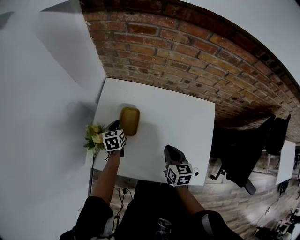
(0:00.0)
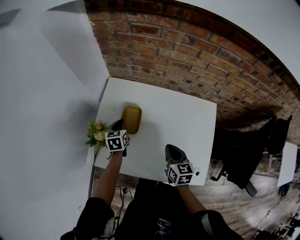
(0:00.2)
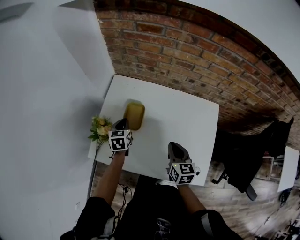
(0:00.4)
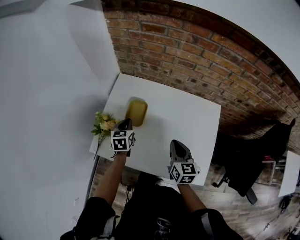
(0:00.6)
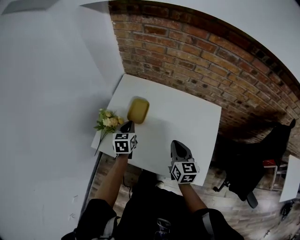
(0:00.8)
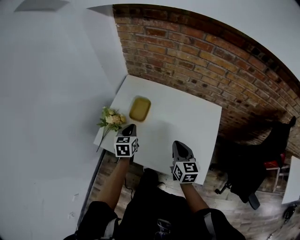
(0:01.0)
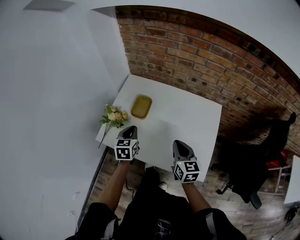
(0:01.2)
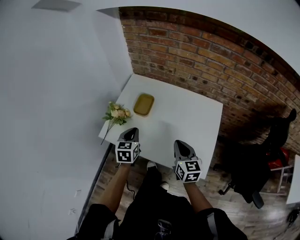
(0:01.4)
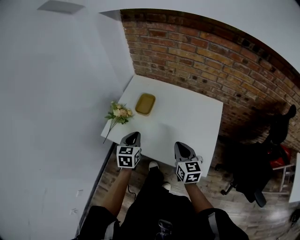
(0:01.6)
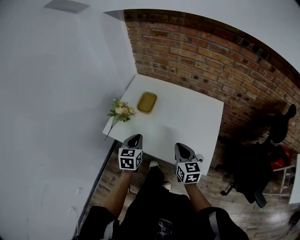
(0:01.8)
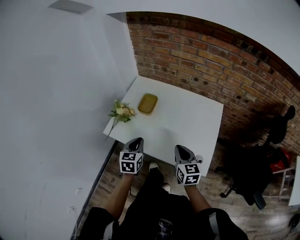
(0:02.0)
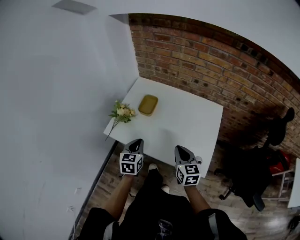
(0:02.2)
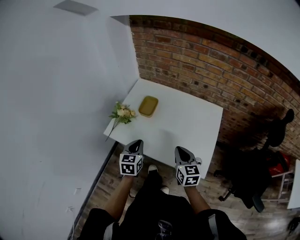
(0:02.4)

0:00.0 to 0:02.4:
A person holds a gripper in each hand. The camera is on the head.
0:00.0 to 0:01.2: The right gripper moves backward and upward, some 15 cm, while the left gripper travels backward and upward by some 25 cm.
0:01.2 to 0:02.4: The right gripper shifts approximately 10 cm backward. Meanwhile the left gripper is displaced backward by roughly 15 cm.

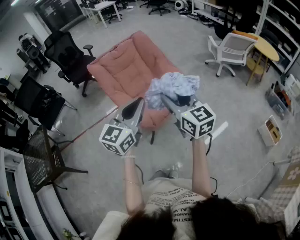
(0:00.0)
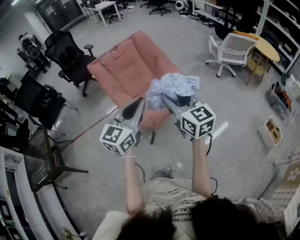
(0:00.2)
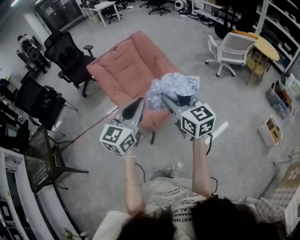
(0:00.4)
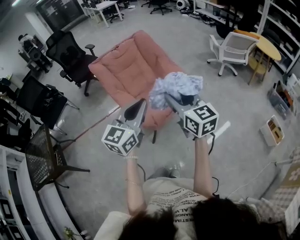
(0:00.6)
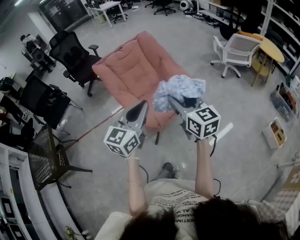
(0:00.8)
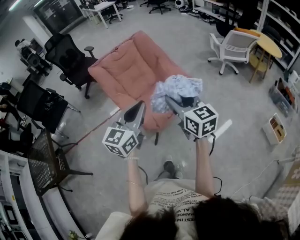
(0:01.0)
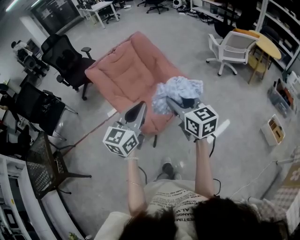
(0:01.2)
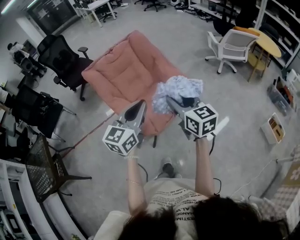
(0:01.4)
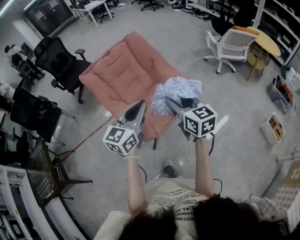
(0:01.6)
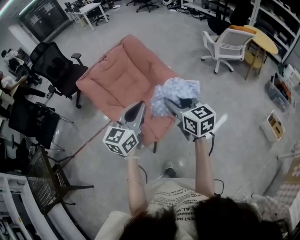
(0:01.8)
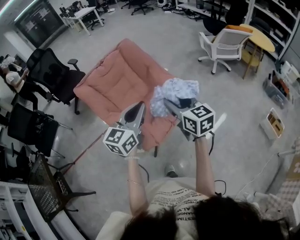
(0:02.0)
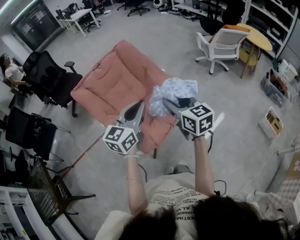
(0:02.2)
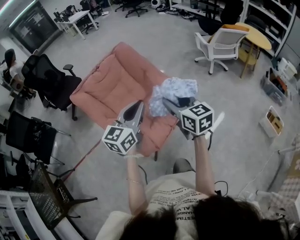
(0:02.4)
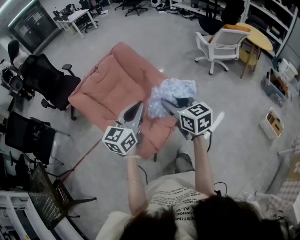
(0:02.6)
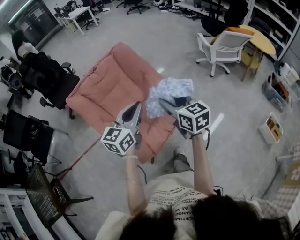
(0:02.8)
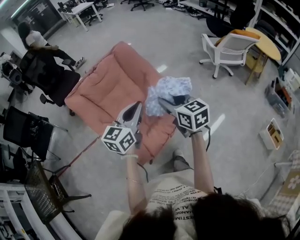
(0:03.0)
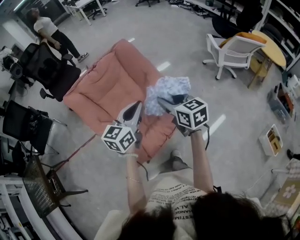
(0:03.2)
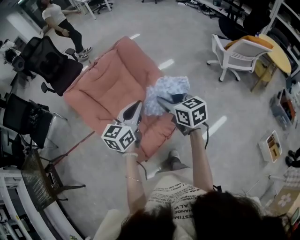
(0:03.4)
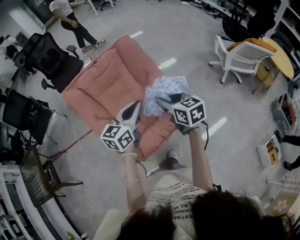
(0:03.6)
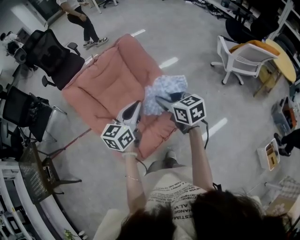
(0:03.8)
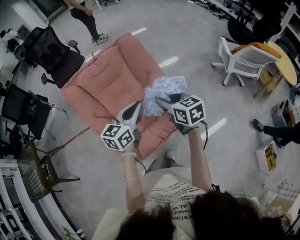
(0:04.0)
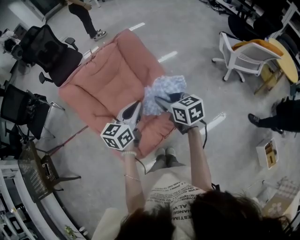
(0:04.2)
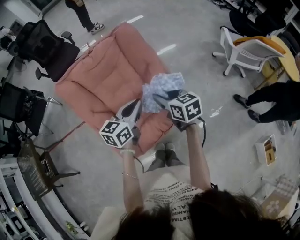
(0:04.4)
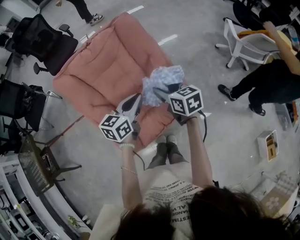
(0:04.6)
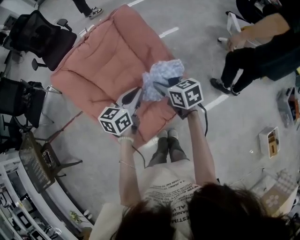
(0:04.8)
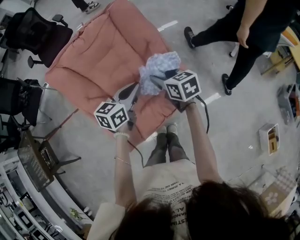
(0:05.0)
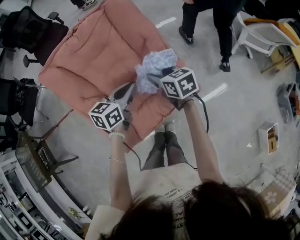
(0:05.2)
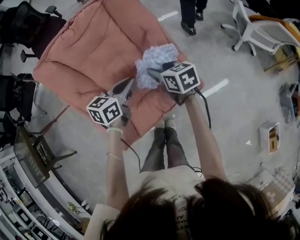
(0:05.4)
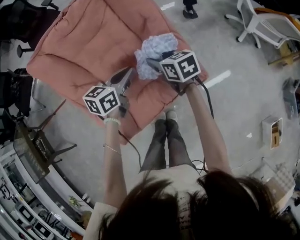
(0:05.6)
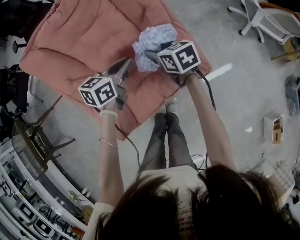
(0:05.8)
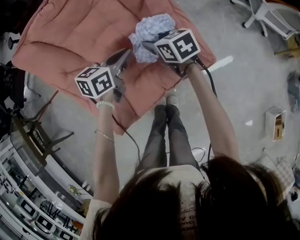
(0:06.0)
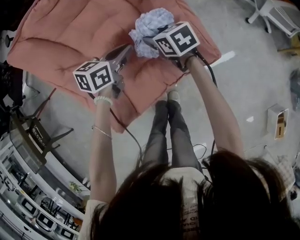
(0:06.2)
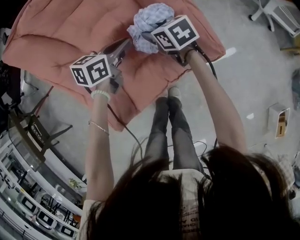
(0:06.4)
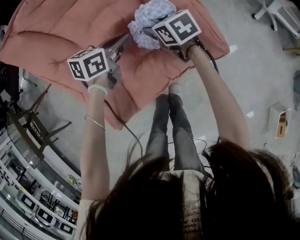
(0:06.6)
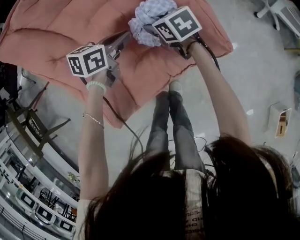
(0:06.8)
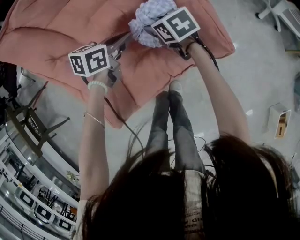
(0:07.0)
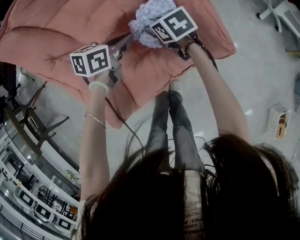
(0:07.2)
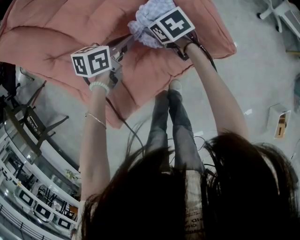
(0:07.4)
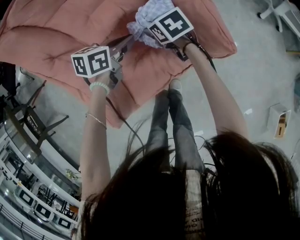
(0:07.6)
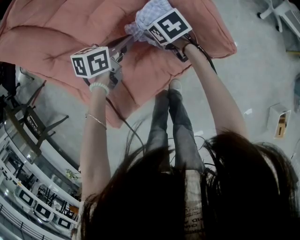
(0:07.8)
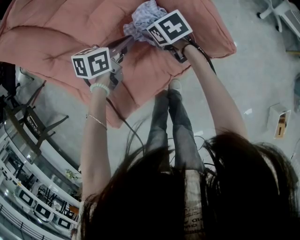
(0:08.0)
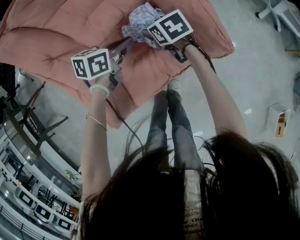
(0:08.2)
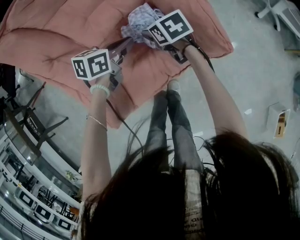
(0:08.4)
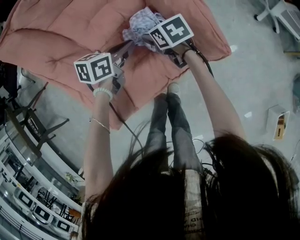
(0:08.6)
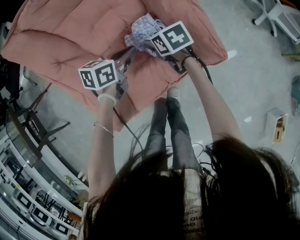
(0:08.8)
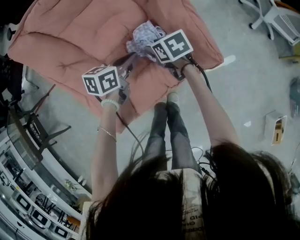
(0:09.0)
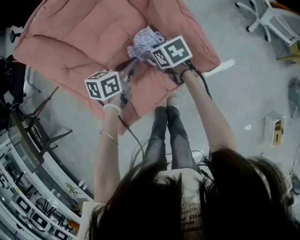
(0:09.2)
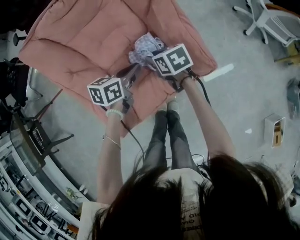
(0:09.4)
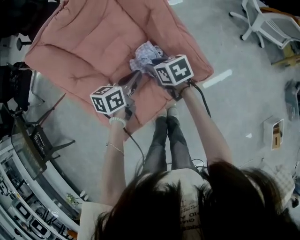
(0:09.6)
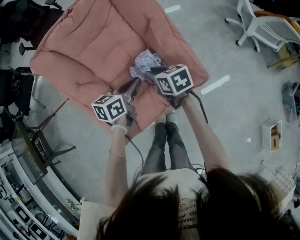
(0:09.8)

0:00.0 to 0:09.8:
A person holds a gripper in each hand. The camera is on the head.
0:00.0 to 0:01.4: The right gripper shifts roughly 10 cm forward and downward. Meanwhile the left gripper travels forward by some 10 cm.
0:01.4 to 0:02.8: The grippers both shift forward by about 20 cm.
0:02.8 to 0:04.2: Both grippers travel together forward and downward, roughly 15 cm. The right gripper turns by some 20 degrees.
0:04.2 to 0:05.6: Both grippers travel together downward and forward, about 25 cm.
0:05.6 to 0:07.0: The two grippers go approximately 15 cm downward.
0:07.0 to 0:08.4: There are only small adjustments of the grippers.
0:08.4 to 0:09.8: The grippers both shift upward by roughly 15 cm. The right gripper closes.

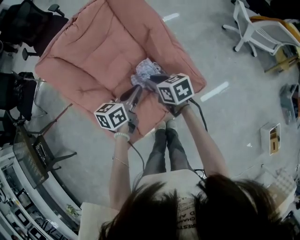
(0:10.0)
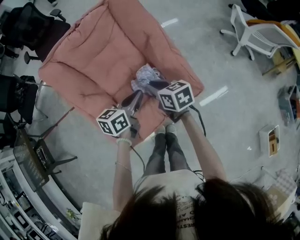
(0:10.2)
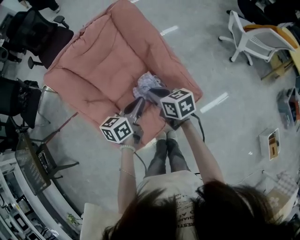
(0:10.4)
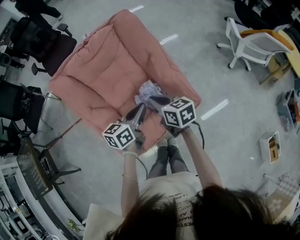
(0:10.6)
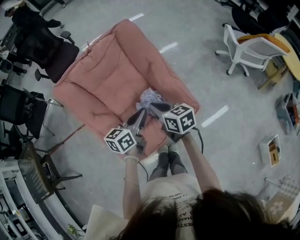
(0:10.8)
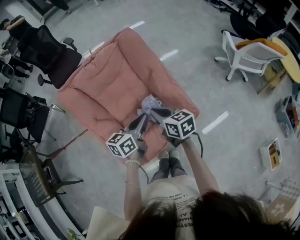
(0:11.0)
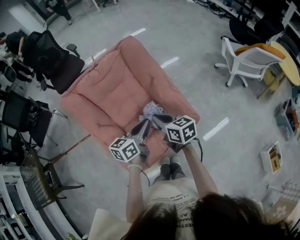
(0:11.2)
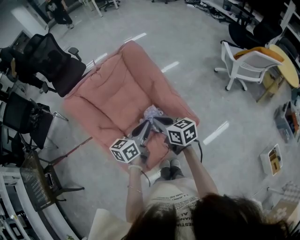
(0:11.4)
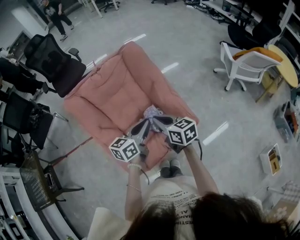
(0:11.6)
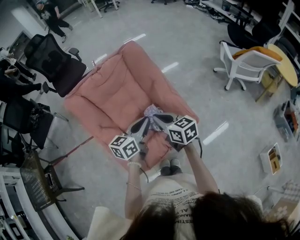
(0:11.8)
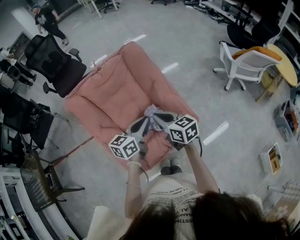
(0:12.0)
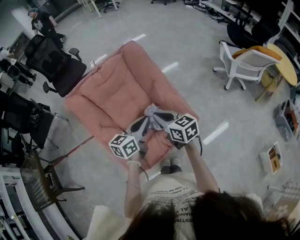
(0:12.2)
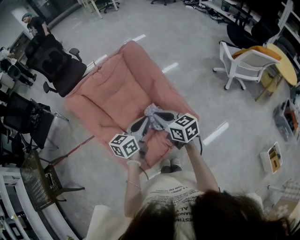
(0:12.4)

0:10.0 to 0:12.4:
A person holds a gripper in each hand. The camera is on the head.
0:10.0 to 0:11.2: The two grippers go about 15 cm upward.
0:11.2 to 0:12.4: The grippers move only a little.

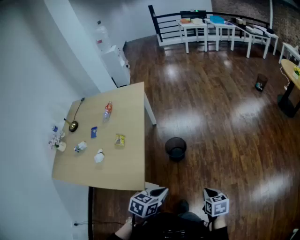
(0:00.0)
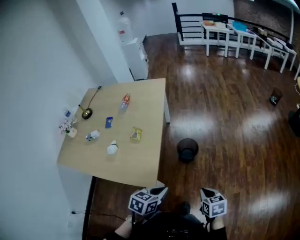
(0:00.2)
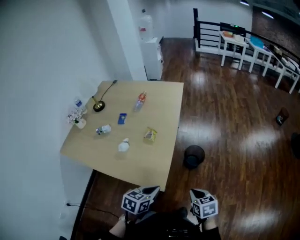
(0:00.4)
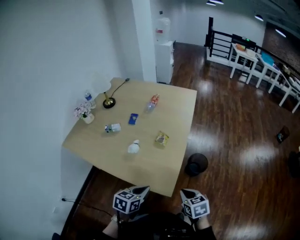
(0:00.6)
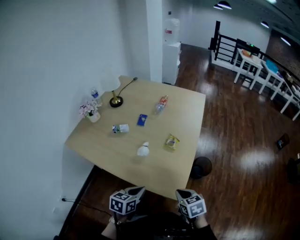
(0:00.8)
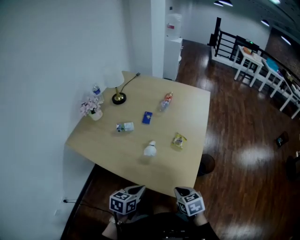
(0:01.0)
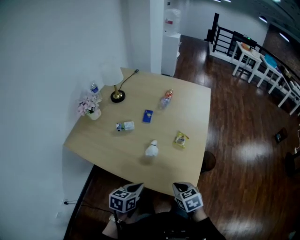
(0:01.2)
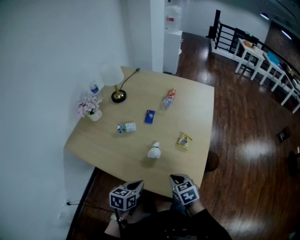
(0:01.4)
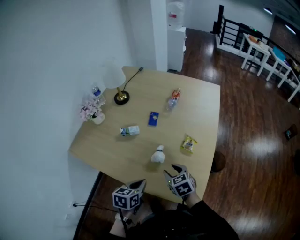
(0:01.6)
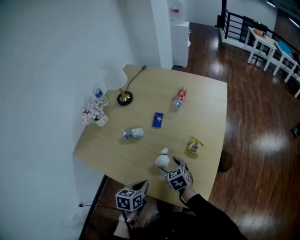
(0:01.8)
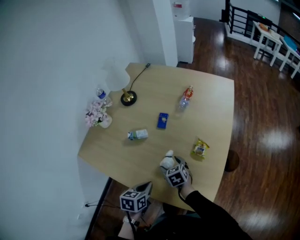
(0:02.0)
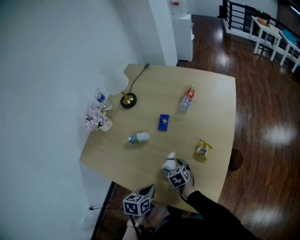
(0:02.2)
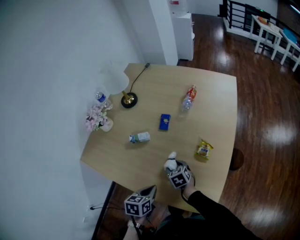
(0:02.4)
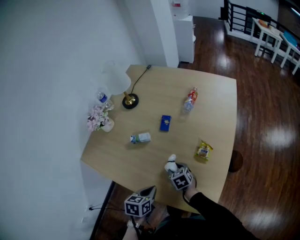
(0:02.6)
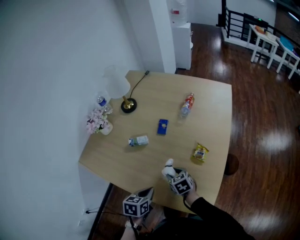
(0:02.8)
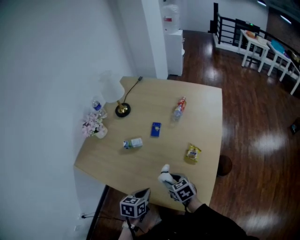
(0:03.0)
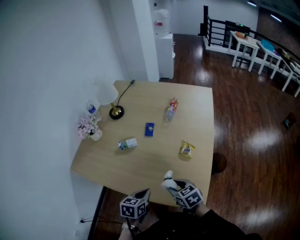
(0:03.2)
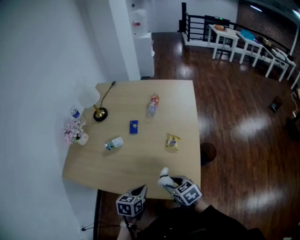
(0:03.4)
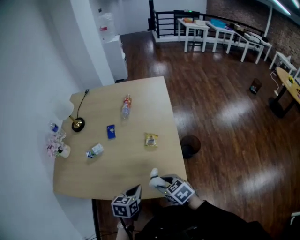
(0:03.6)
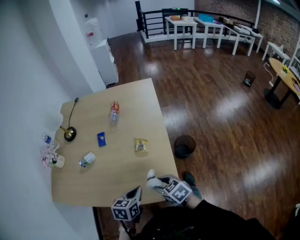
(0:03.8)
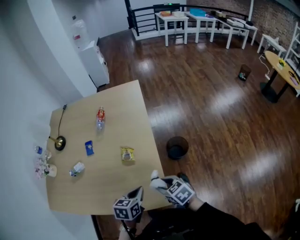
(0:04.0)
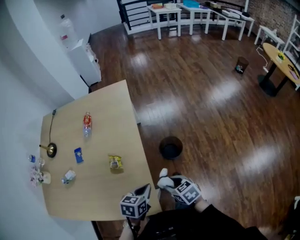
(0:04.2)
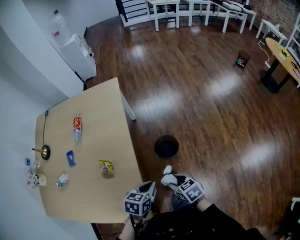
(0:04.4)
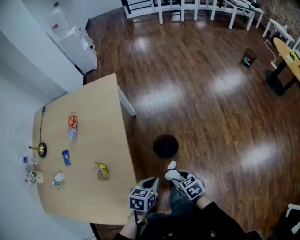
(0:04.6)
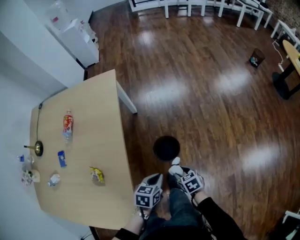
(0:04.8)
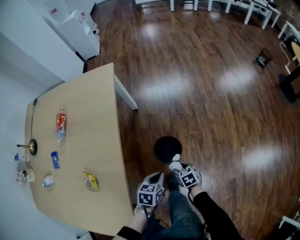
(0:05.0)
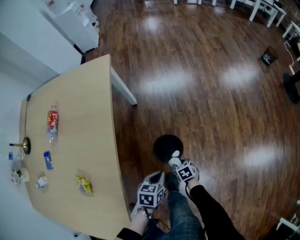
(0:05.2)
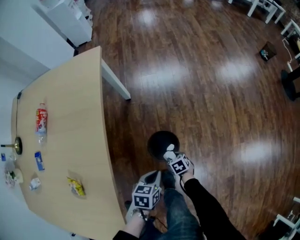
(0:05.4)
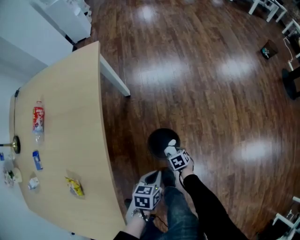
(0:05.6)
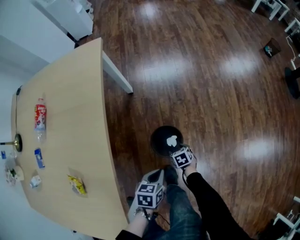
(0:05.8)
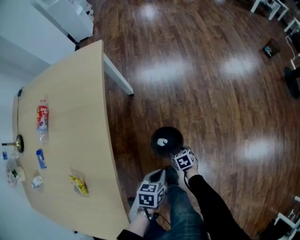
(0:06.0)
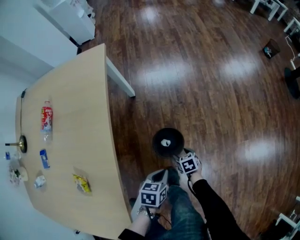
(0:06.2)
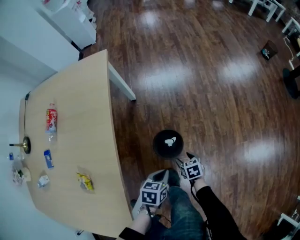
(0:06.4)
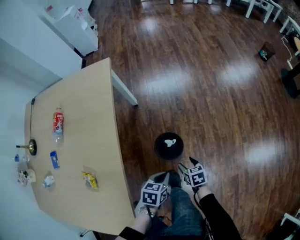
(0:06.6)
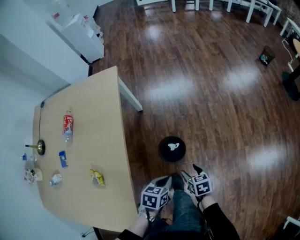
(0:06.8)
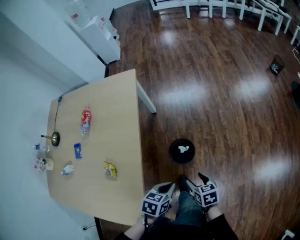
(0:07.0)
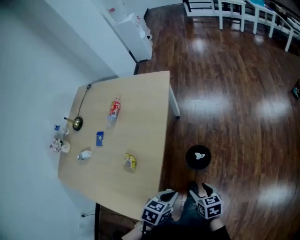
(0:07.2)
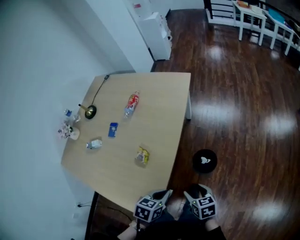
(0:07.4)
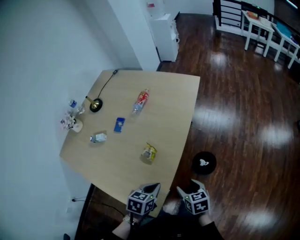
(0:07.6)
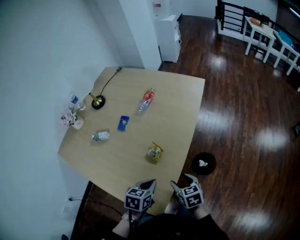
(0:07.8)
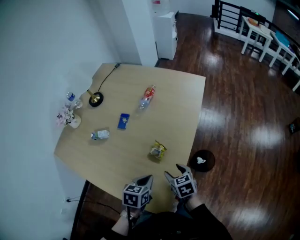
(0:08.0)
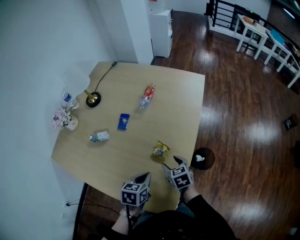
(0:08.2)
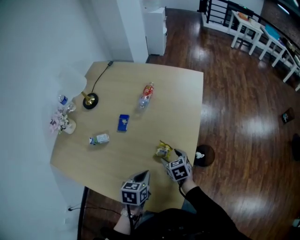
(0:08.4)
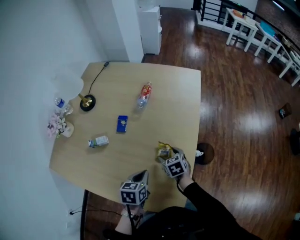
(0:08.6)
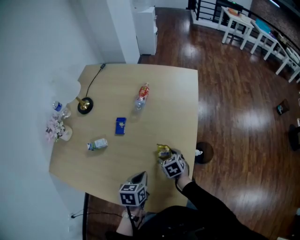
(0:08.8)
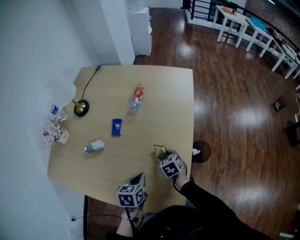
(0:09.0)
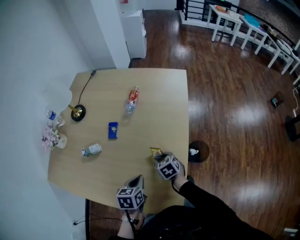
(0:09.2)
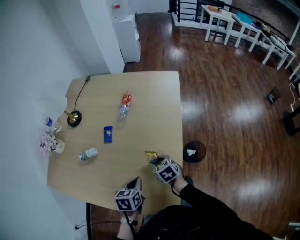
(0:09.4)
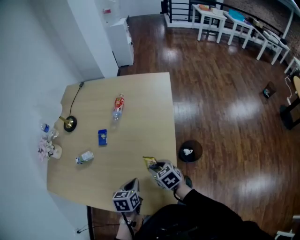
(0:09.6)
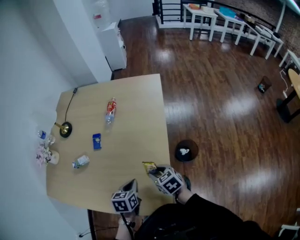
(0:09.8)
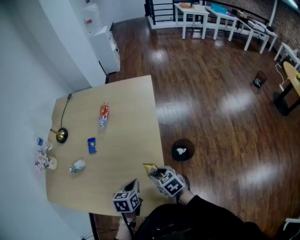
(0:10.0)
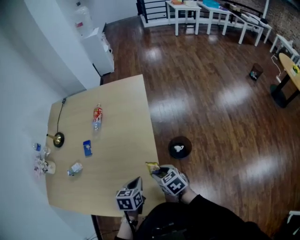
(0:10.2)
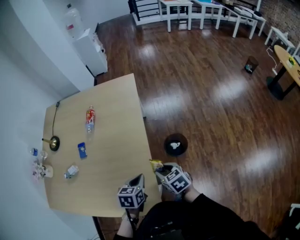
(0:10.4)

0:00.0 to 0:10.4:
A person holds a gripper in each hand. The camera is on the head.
0:00.0 to 0:01.4: The two grippers travel together, some 50 cm. The left gripper swivels some 30 degrees; the right gripper swivels about 40 degrees.
0:01.4 to 0:03.0: The right gripper goes approximately 10 cm forward and to the left, and opens, then closes once more; the left gripper moves forward, some 5 cm.
0:03.0 to 0:04.4: The two grippers travel together, some 40 cm. The left gripper swivels some 40 degrees. The right gripper turns by some 30 degrees.
0:04.4 to 0:06.0: The right gripper travels downward and forward by approximately 40 cm, and swivels about 20 degrees; the left gripper is displaced downward and forward by roughly 25 cm.
0:06.0 to 0:07.4: The right gripper is displaced upward by about 40 cm, and changes its angle by about 30 degrees. The left gripper heads upward, backward and to the left, covering some 30 cm.
0:07.4 to 0:09.0: The left gripper travels to the left by approximately 25 cm. Meanwhile the right gripper shifts about 30 cm to the left and forward, and rotates some 20 degrees.
0:09.0 to 0:10.4: The left gripper is displaced to the right by approximately 20 cm, and changes its angle by about 20 degrees, while the right gripper moves to the right, backward and upward, some 25 cm.
